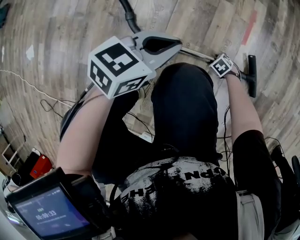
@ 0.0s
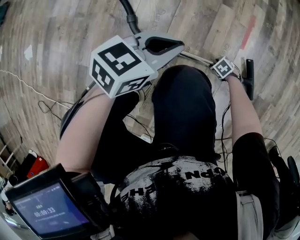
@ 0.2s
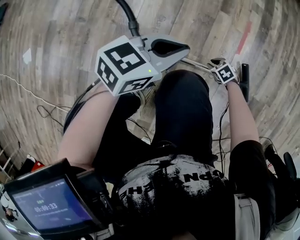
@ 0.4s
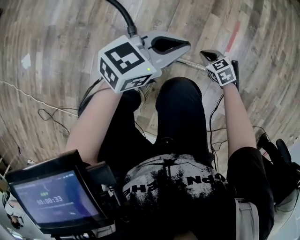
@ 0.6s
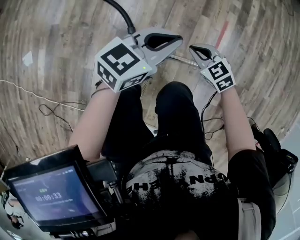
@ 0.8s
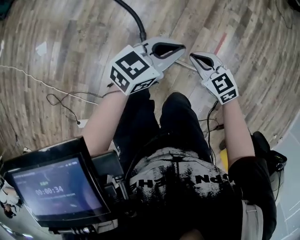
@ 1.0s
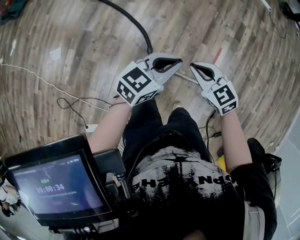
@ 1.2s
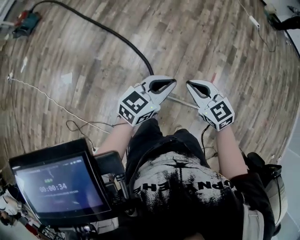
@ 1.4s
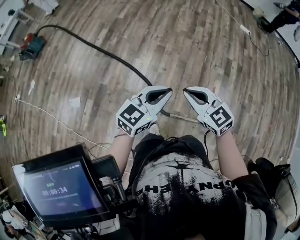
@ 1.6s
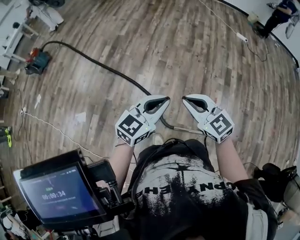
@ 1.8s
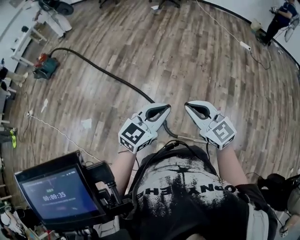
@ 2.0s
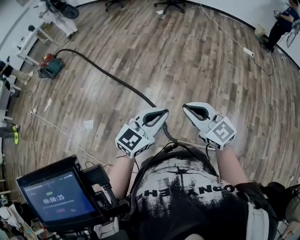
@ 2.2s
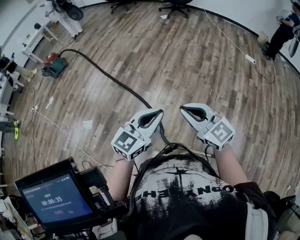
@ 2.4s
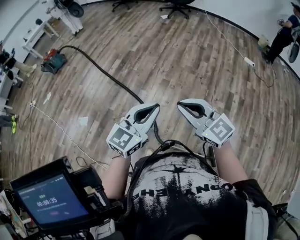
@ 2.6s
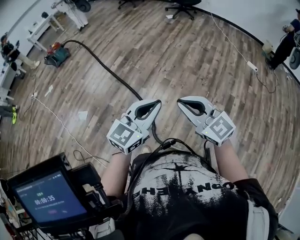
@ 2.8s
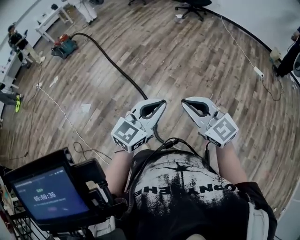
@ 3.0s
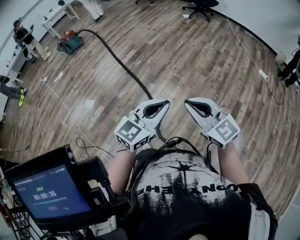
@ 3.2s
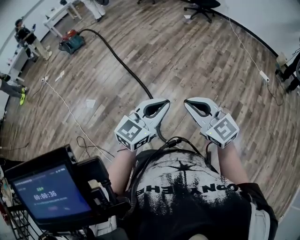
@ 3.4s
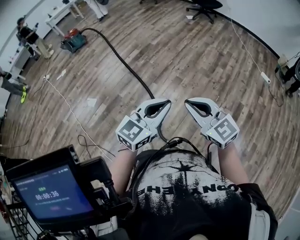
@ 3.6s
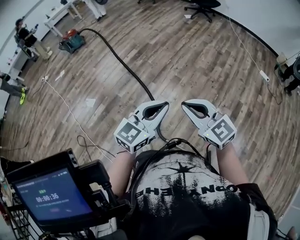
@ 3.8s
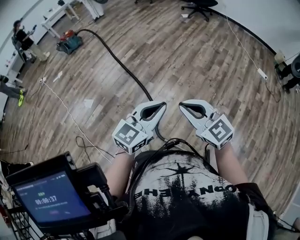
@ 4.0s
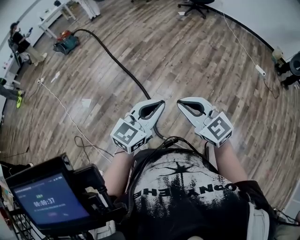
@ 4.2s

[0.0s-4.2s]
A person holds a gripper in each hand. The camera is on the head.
0.0s to 1.4s: The left gripper travels upward by roughly 50 cm, and changes its angle by some 20 degrees. Meanwhile the right gripper travels upward by about 90 cm, angles its fingers upward, by about 50 degrees, and closes its fingers.
1.4s to 2.8s: Both grippers move upward and to the right, some 25 cm. The right gripper changes its angle by some 30 degrees. The left gripper swivels approximately 30 degrees.
2.8s to 4.2s: The grippers make only small movements.

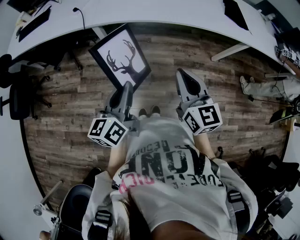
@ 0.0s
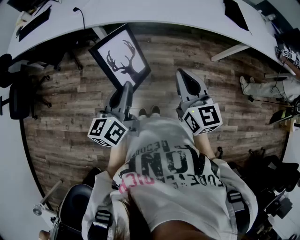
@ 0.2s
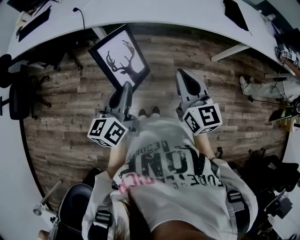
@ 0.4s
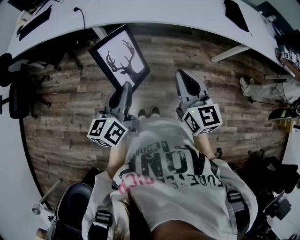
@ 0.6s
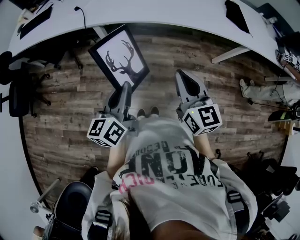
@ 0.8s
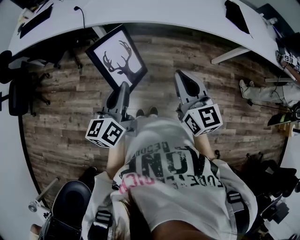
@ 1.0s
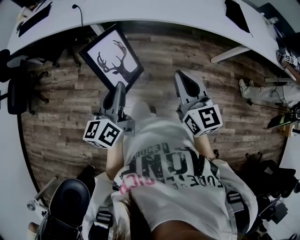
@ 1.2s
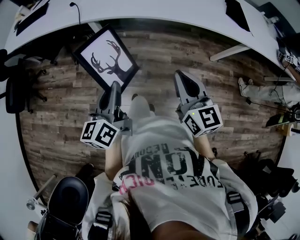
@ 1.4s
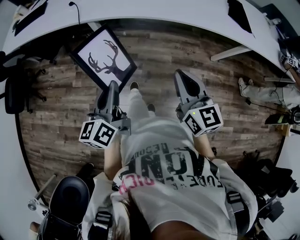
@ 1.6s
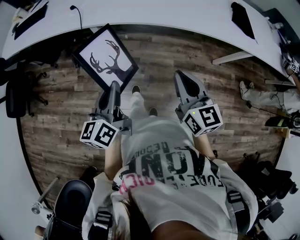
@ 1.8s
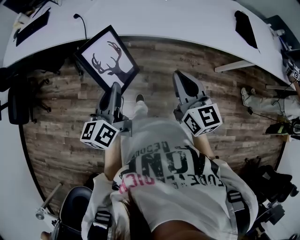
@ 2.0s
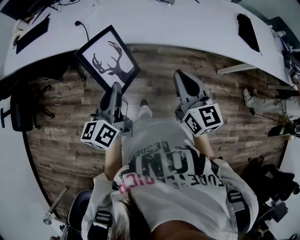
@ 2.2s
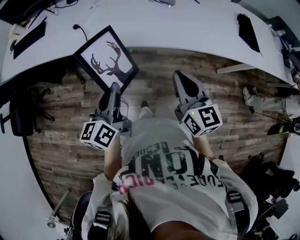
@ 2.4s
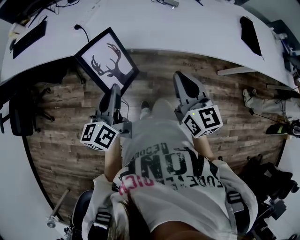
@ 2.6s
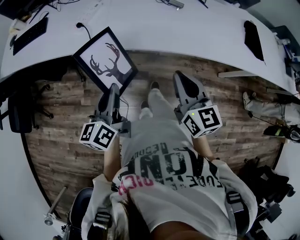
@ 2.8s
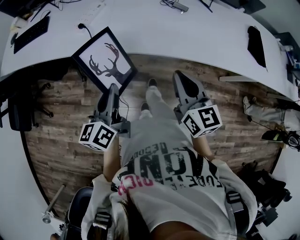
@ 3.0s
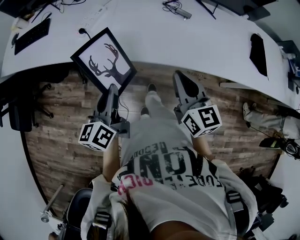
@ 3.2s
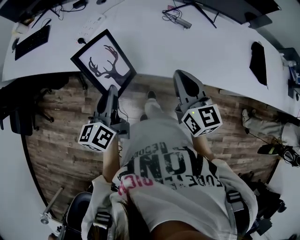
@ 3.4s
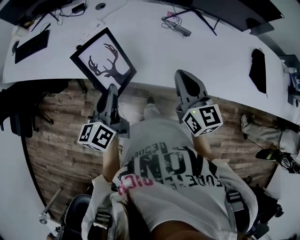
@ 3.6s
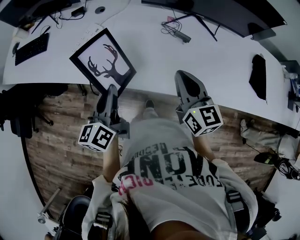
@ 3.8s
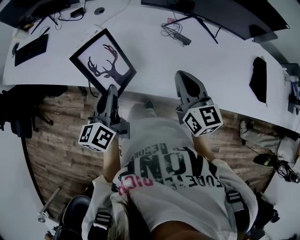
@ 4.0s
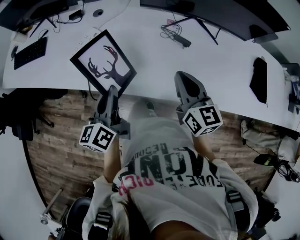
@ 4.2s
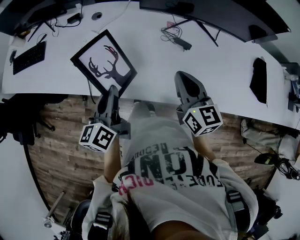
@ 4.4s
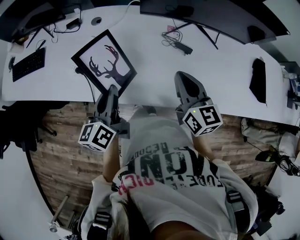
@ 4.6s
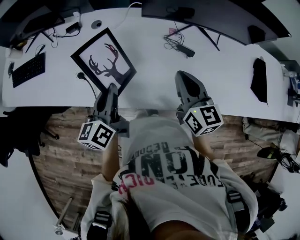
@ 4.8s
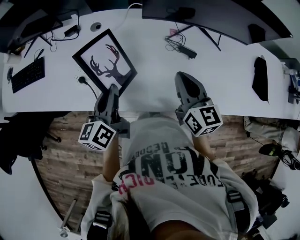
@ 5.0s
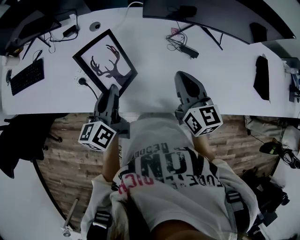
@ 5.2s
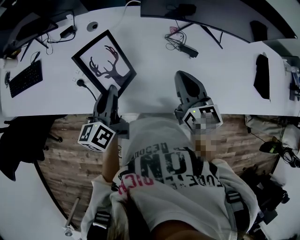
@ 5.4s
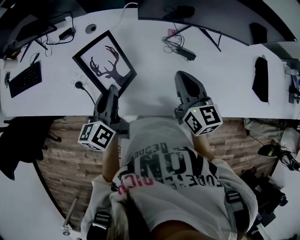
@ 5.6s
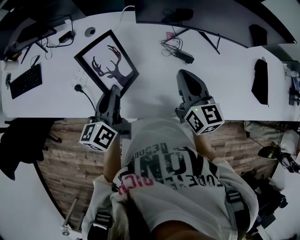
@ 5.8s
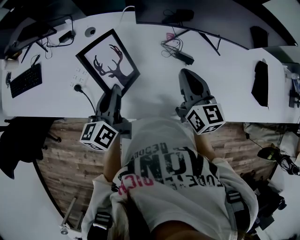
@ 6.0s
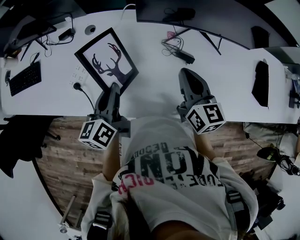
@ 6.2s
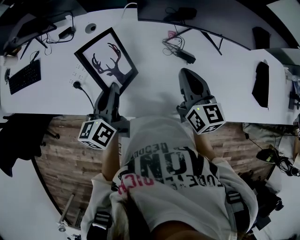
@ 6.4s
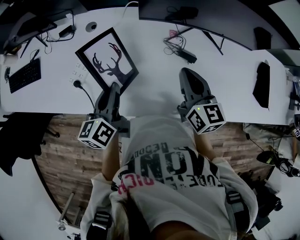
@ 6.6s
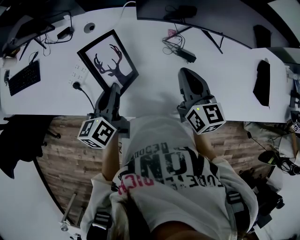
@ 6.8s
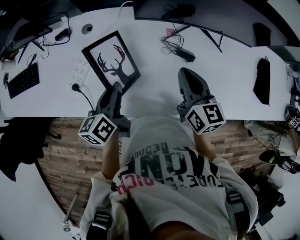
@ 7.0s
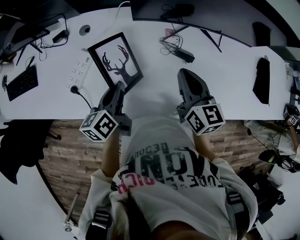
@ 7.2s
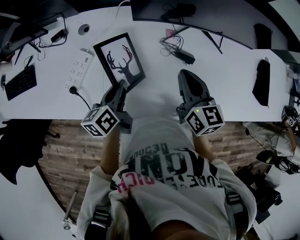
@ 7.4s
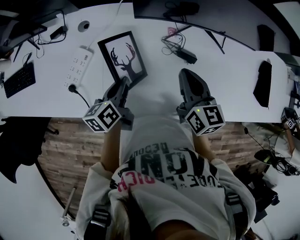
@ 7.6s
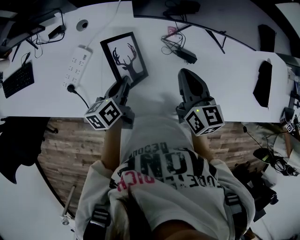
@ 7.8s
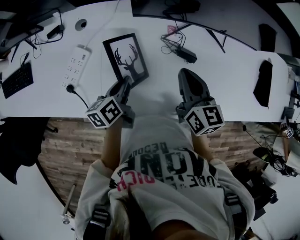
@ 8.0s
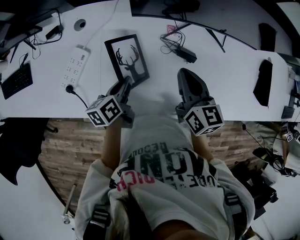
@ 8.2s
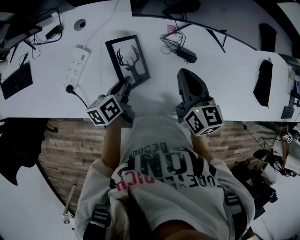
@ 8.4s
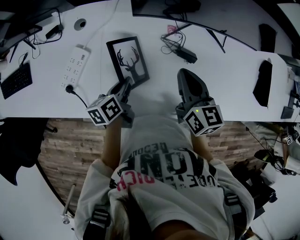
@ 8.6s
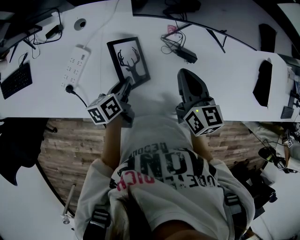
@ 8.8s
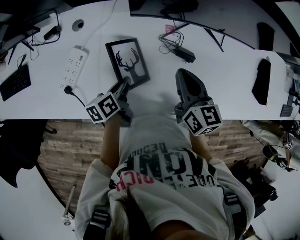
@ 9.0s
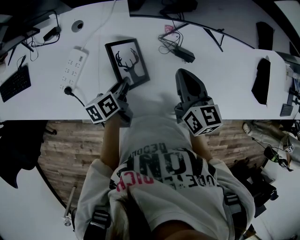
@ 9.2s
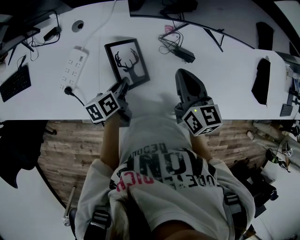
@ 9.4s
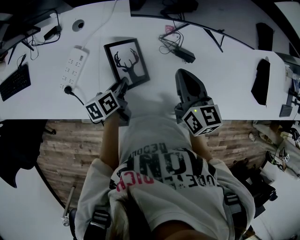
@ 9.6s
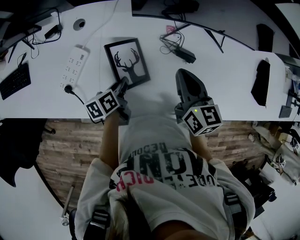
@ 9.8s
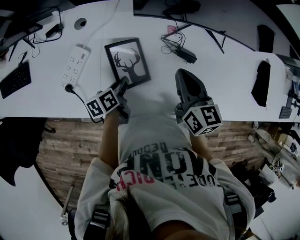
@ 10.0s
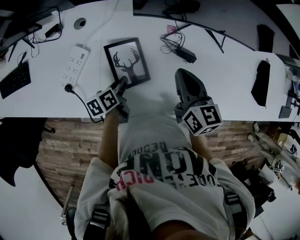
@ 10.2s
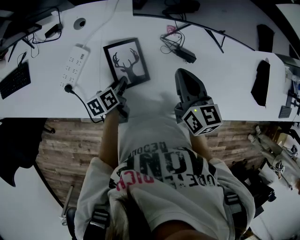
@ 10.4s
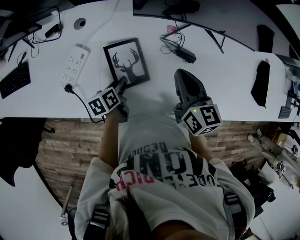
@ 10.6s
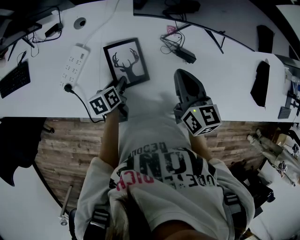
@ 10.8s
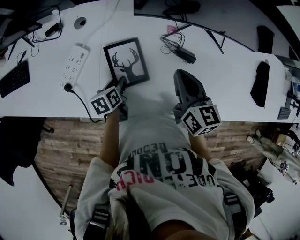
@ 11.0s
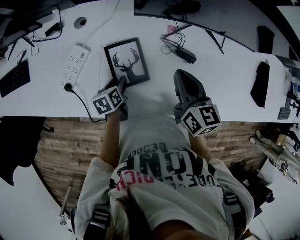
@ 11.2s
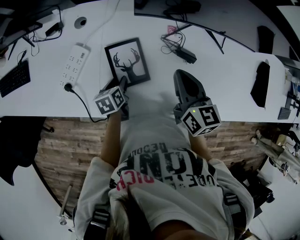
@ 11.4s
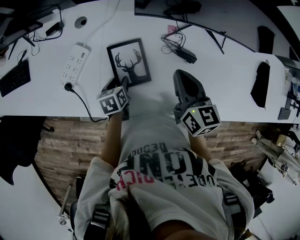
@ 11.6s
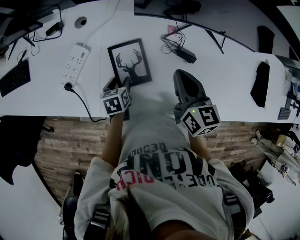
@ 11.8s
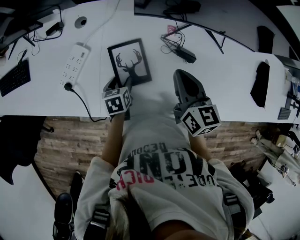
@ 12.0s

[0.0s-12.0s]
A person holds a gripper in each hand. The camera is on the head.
0.0s to 1.6s: The grippers make only small movements.
1.6s to 3.0s: Both grippers move forward and to the left, approximately 25 cm.
3.0s to 4.4s: The two grippers go approximately 20 cm forward.
4.4s to 6.0s: The grippers both shift forward by roughly 10 cm.
6.0s to 7.6s: The left gripper moves downward, about 10 cm.
7.6s to 9.0s: The left gripper is displaced downward by about 5 cm.
9.0s to 10.4s: The left gripper changes place by about 5 cm.
10.4s to 12.0s: The left gripper swivels roughly 30 degrees, and opens its fingers.

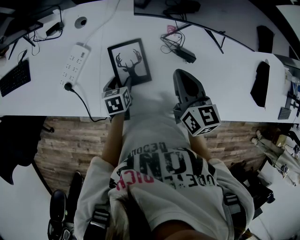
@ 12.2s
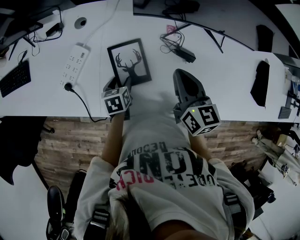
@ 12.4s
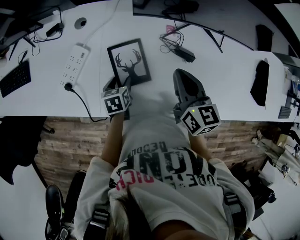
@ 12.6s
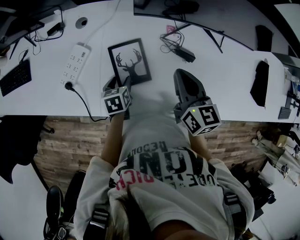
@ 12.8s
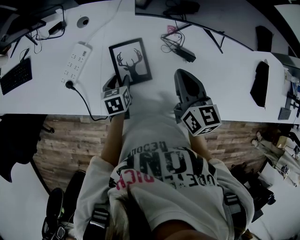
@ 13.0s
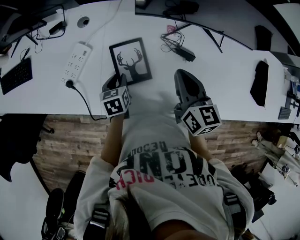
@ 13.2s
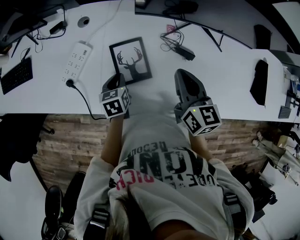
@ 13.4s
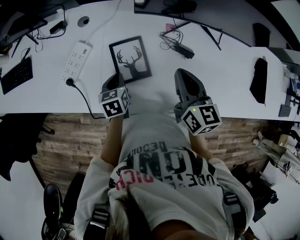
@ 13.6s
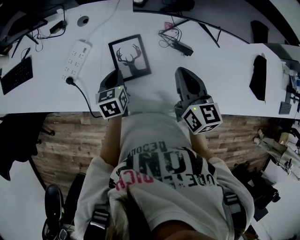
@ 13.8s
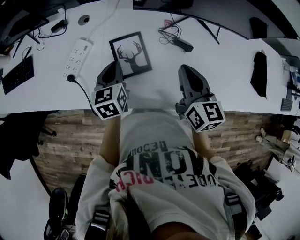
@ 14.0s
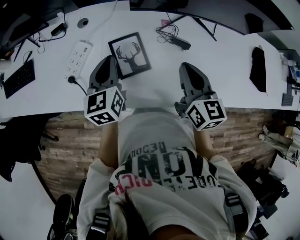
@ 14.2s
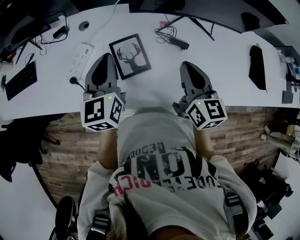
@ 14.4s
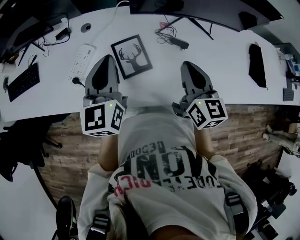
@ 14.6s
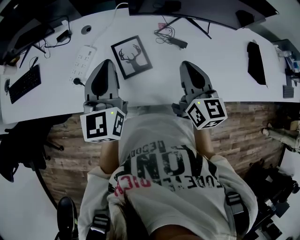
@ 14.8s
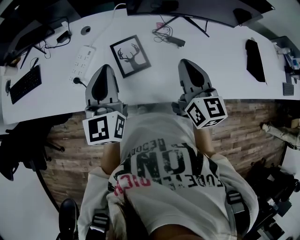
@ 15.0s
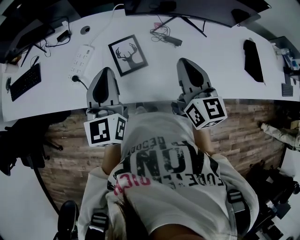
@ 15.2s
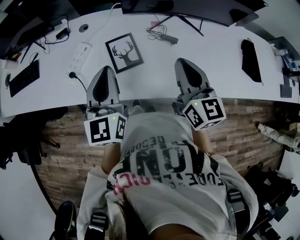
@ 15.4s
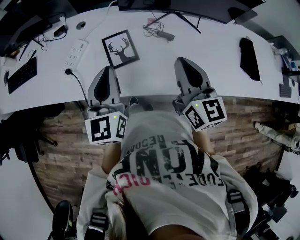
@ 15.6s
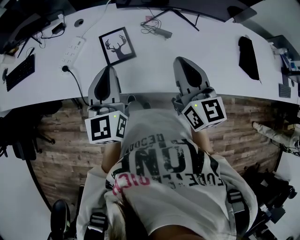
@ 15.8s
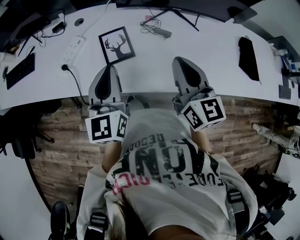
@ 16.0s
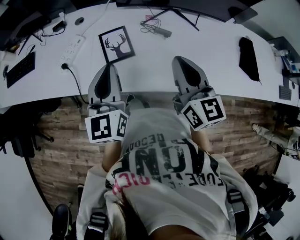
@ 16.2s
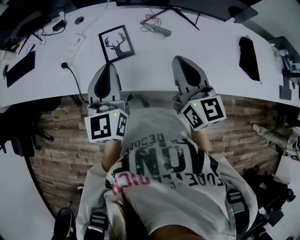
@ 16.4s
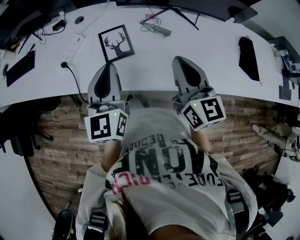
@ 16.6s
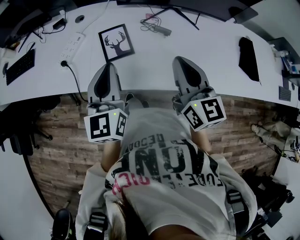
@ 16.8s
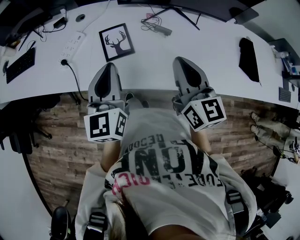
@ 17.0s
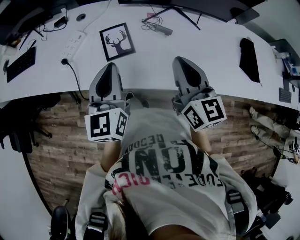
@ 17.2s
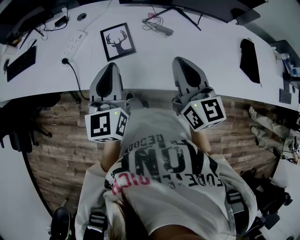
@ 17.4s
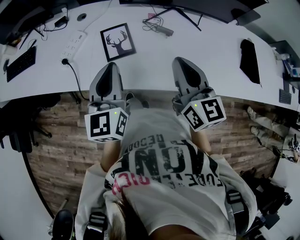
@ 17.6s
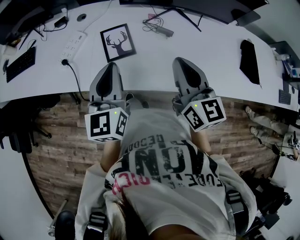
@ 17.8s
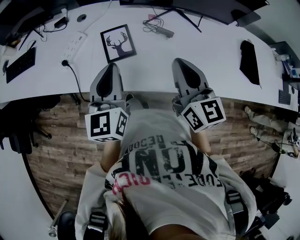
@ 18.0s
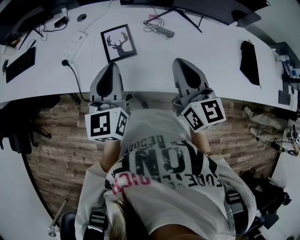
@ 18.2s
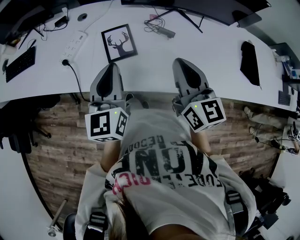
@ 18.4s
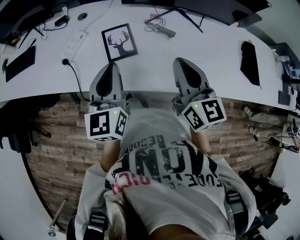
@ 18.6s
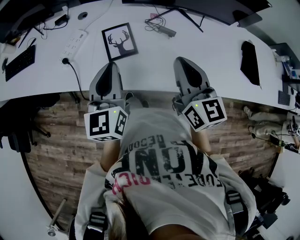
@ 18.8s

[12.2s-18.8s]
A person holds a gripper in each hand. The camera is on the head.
12.2s to 13.8s: The left gripper heads upward, covering some 10 cm, and closes.
13.8s to 15.4s: The left gripper moves upward and backward, approximately 25 cm, and points its fingers approximately 40 degrees further upward. The right gripper shifts some 15 cm backward and upward.
15.4s to 17.2s: The right gripper moves some 5 cm, while the left gripper heads backward, covering roughly 5 cm.
17.2s to 18.8s: There are only small adjustments of the grippers.

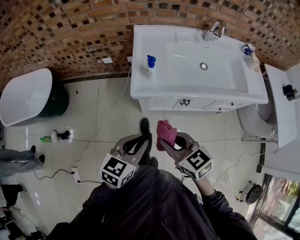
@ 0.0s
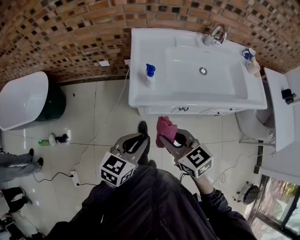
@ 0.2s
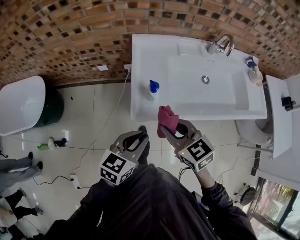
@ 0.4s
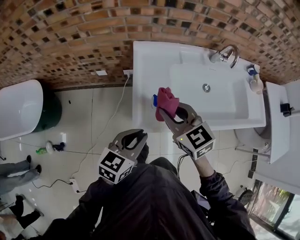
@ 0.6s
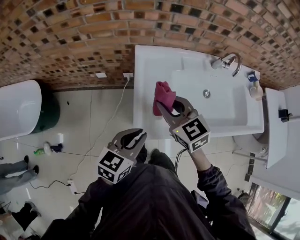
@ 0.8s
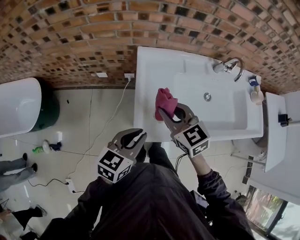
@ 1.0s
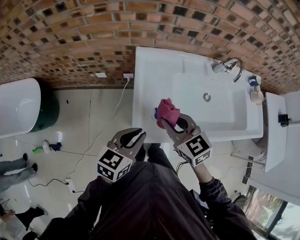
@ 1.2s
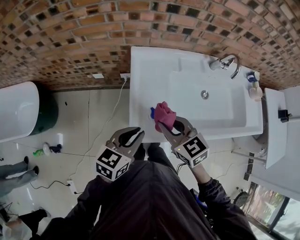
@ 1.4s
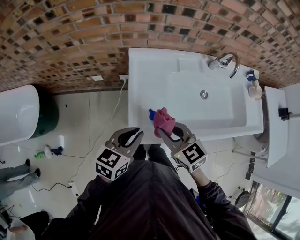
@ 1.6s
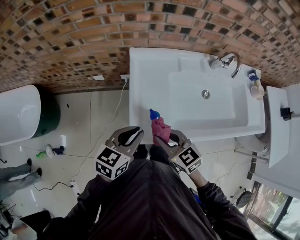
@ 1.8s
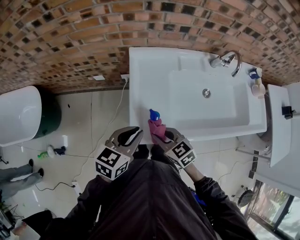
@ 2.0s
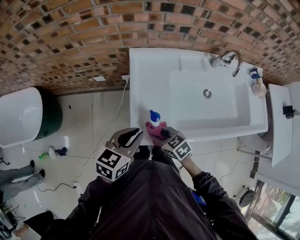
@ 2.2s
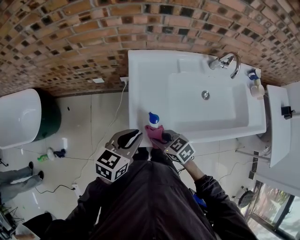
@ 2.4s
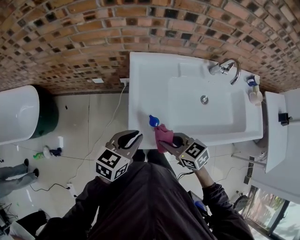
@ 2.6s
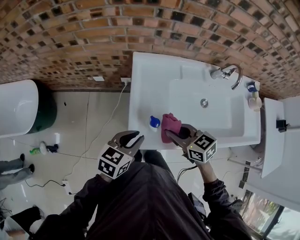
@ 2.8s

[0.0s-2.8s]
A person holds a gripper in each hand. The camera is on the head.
0.0s to 1.4s: Both grippers travel together forward, roughly 30 cm.
1.4s to 2.8s: The right gripper moves roughly 15 cm downward and comes back.
